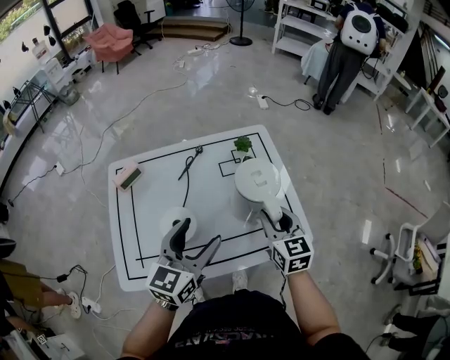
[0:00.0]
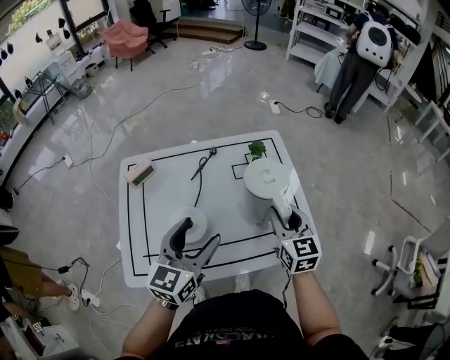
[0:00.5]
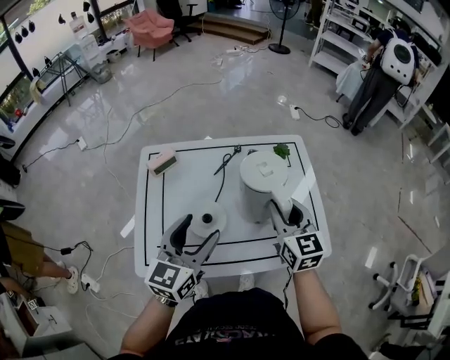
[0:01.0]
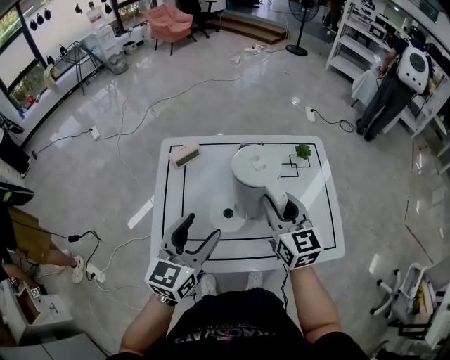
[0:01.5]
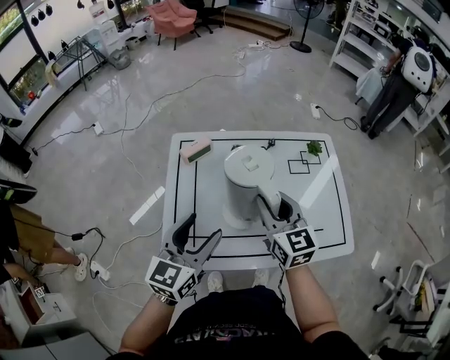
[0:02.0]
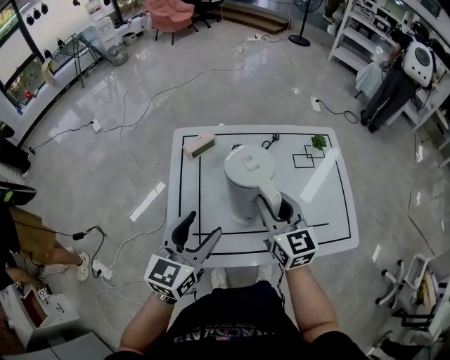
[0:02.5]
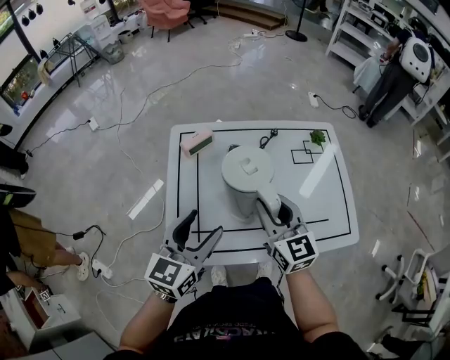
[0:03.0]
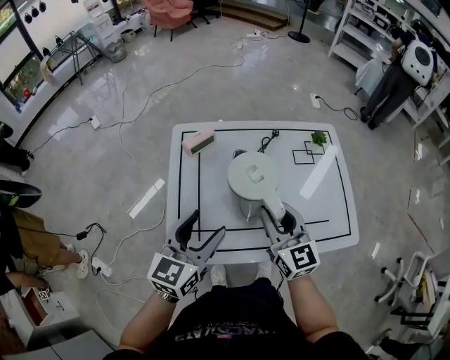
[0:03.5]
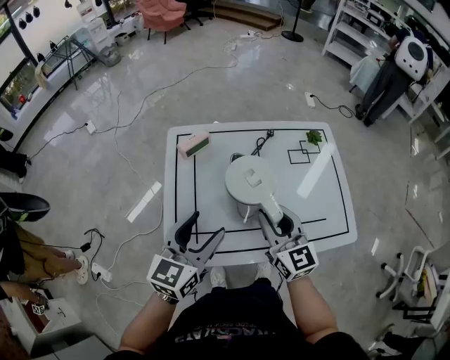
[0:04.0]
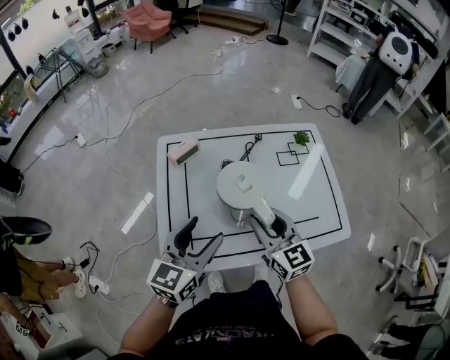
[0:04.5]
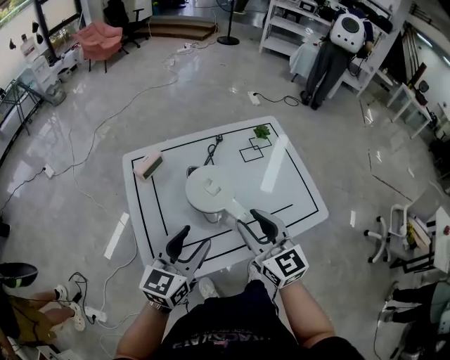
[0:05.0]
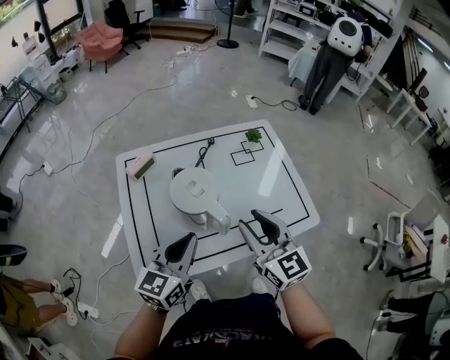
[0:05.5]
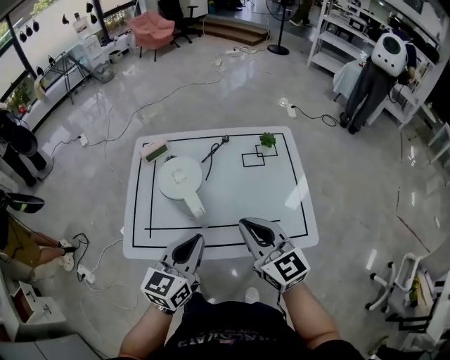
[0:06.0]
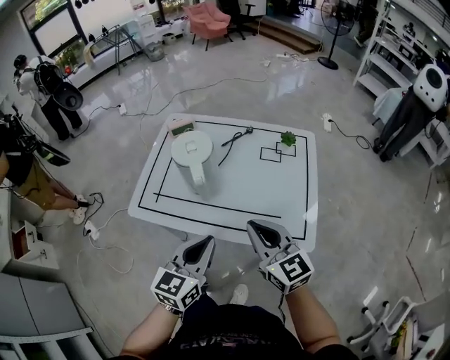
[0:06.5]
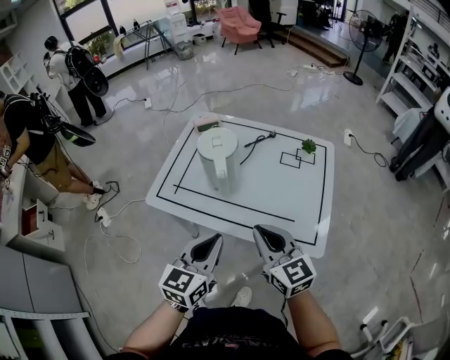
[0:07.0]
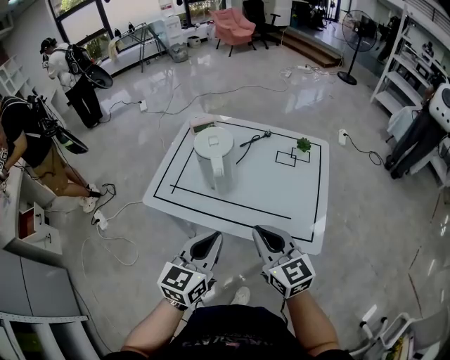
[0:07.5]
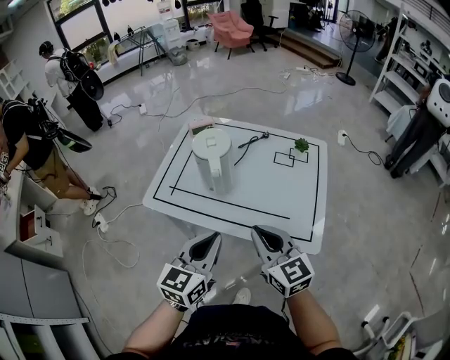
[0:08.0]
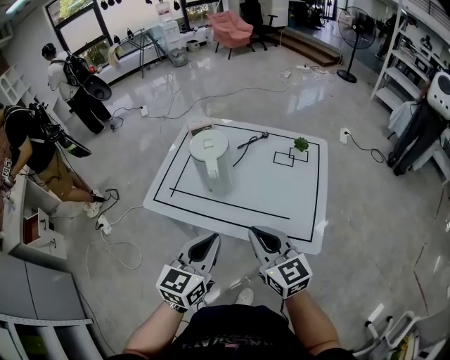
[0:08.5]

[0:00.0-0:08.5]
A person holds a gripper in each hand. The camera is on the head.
0:00.0 to 0:02.0: Both grippers move to the left, some 25 cm.
0:02.0 to 0:04.0: The right gripper shifts some 5 cm backward.
0:04.0 to 0:06.5: The left gripper shifts by roughly 30 cm, and closes up, while the right gripper changes place by approximately 25 cm, swivels some 20 degrees, and closes its fingers.
0:06.5 to 0:08.5: The grippers stay close to where they were, moving slightly.

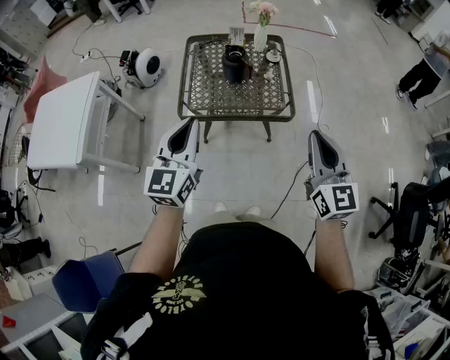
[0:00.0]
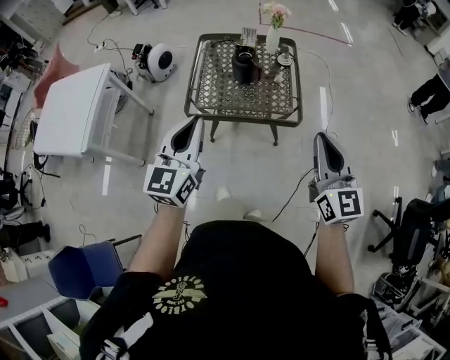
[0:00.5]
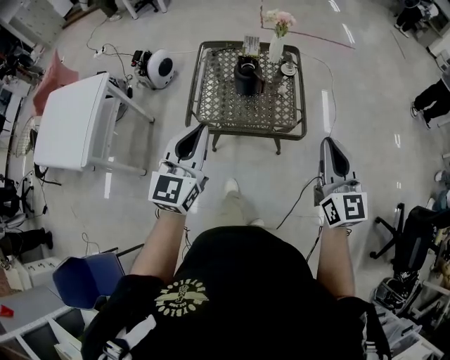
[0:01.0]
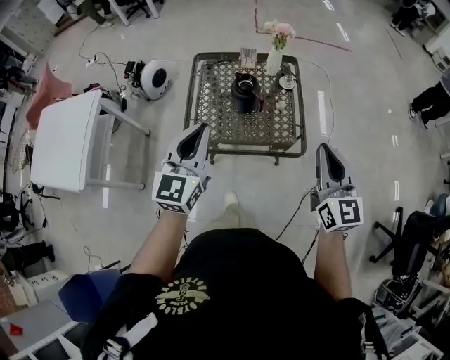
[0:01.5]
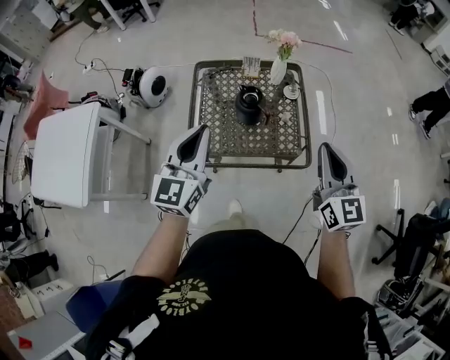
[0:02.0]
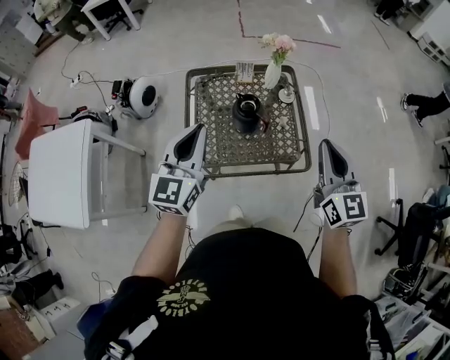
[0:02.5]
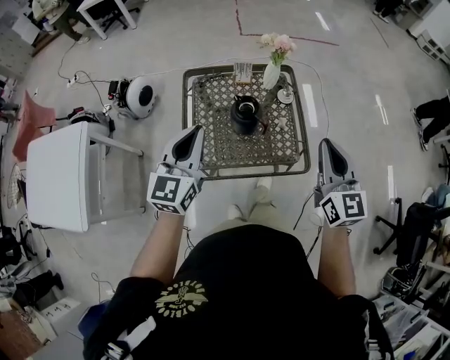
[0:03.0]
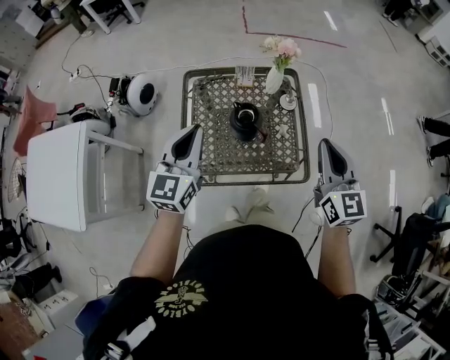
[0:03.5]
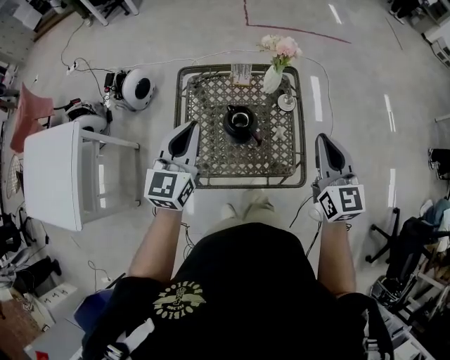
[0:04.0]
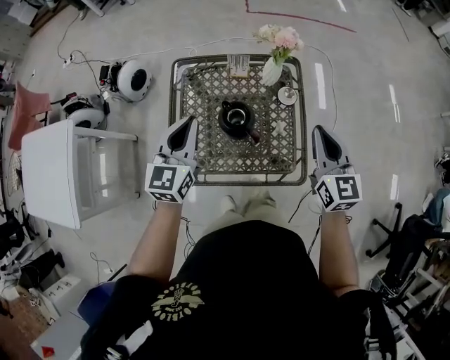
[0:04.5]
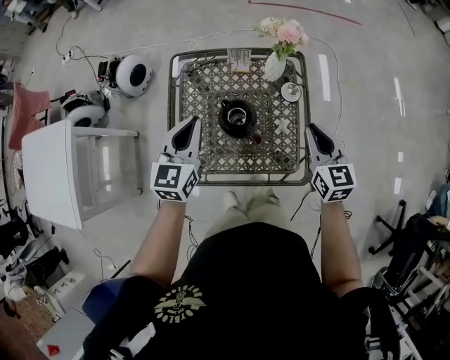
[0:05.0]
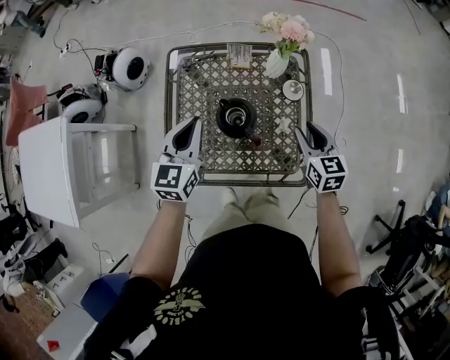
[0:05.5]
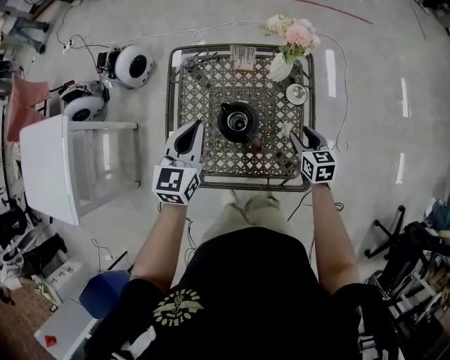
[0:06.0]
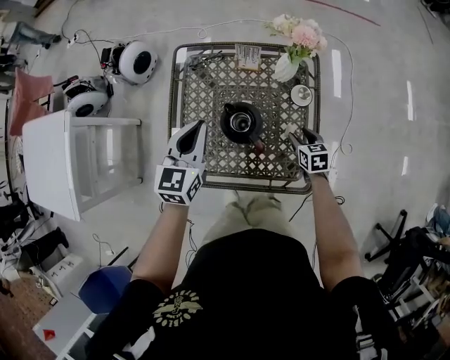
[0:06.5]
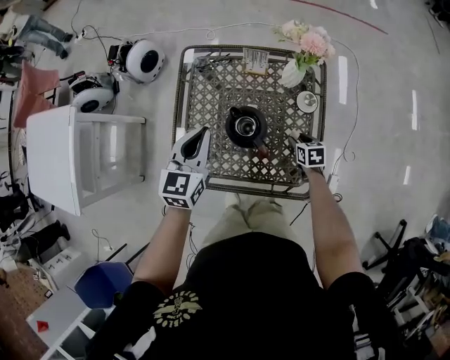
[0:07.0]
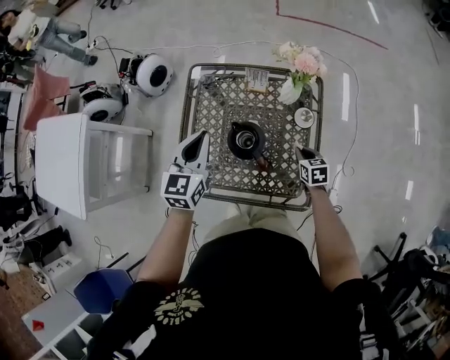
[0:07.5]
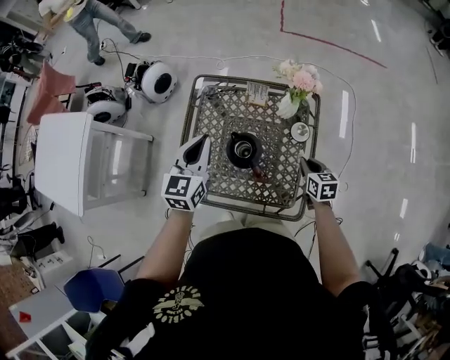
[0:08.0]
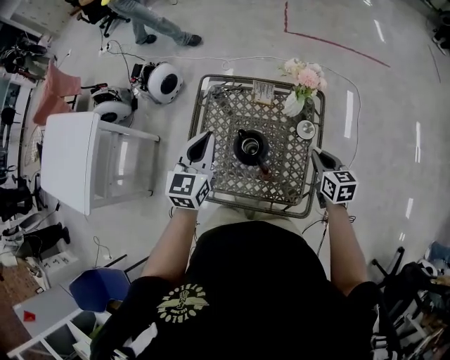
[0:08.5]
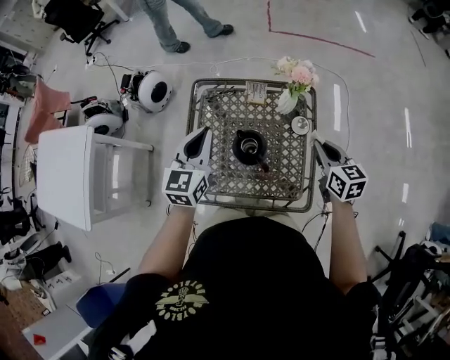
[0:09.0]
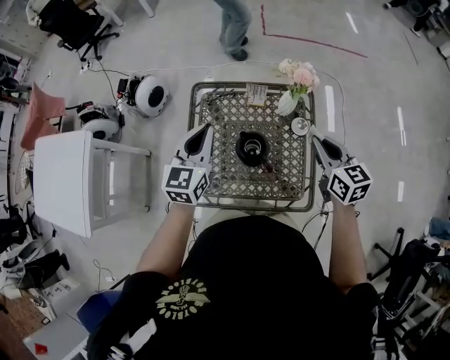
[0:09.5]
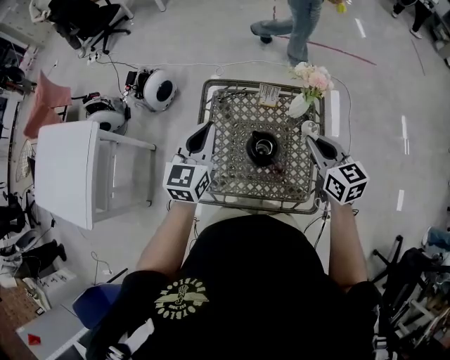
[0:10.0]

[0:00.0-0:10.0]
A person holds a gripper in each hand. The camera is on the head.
0:00.0 to 0:02.0: Both grippers move forward, some 25 cm.
0:02.0 to 0:04.0: Both grippers travel together forward, some 15 cm.
0:04.0 to 0:06.0: The right gripper heads downward, covering approximately 30 cm, tilts its fingers some 30 degrees downward, and opens its fingers. The left gripper shifts approximately 15 cm downward and forward.
0:06.0 to 0:08.0: The left gripper moves upward, about 5 cm; the right gripper goes downward and returns, roughly 15 cm each way, and closes its fingers.
0:08.0 to 0:10.0: The right gripper travels upward and to the left by some 25 cm, and rotates some 20 degrees, while the left gripper goes approximately 10 cm to the left and upward.

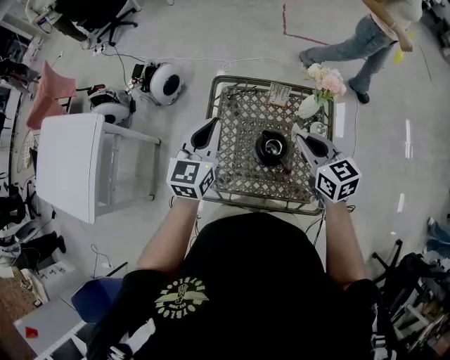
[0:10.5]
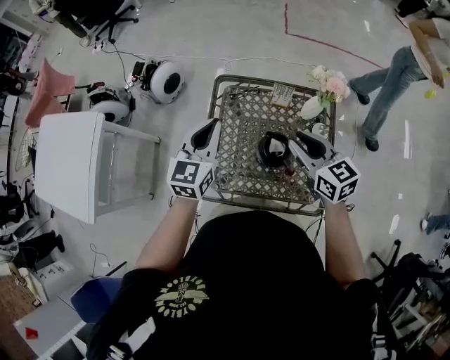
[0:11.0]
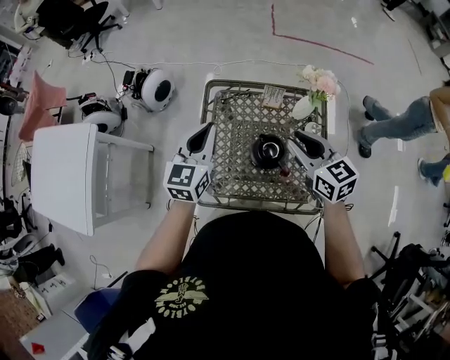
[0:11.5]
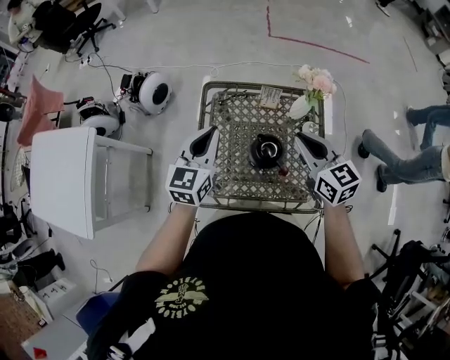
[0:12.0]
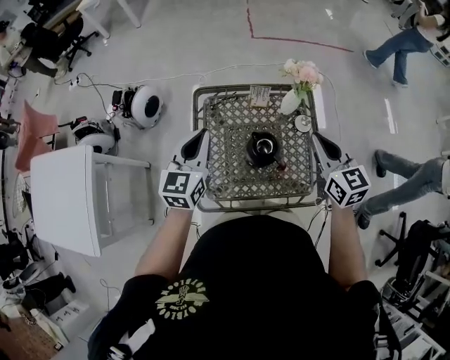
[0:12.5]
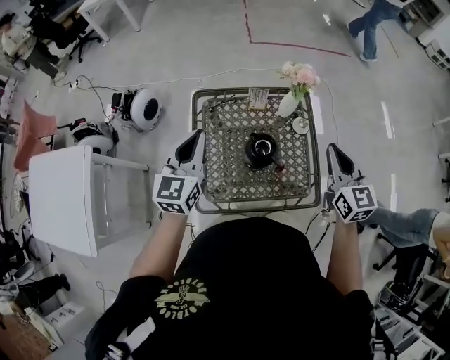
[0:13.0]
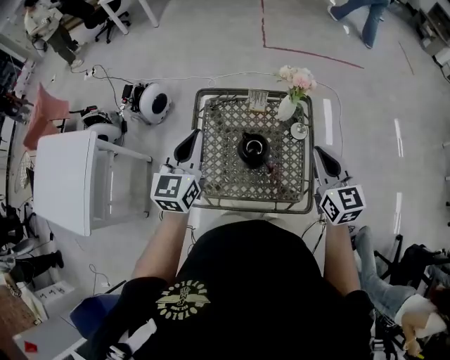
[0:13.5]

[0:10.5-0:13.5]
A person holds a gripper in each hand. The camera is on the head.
0:10.5 to 0:12.0: There are only small adjustments of the grippers.
0:12.0 to 0:13.5: The left gripper goes about 5 cm upward. Meanwhile the right gripper shifts about 15 cm to the right and backward.

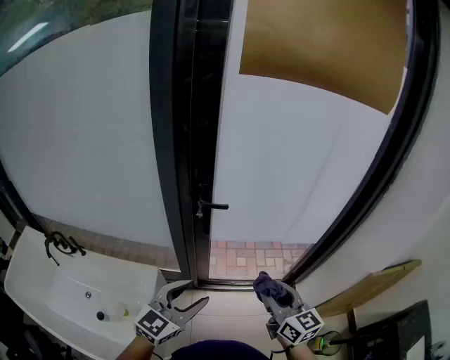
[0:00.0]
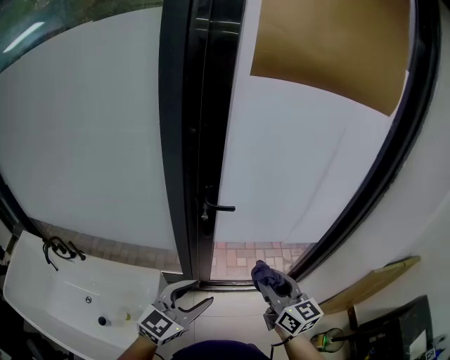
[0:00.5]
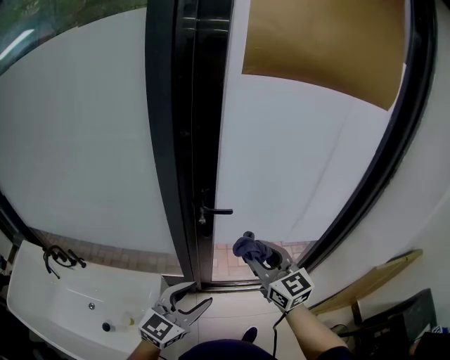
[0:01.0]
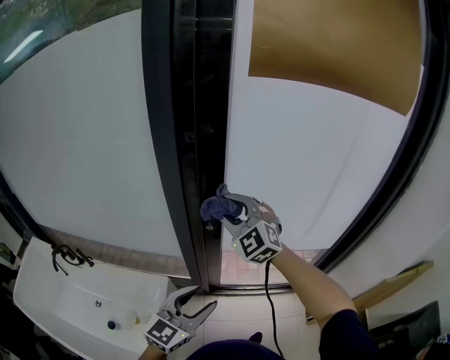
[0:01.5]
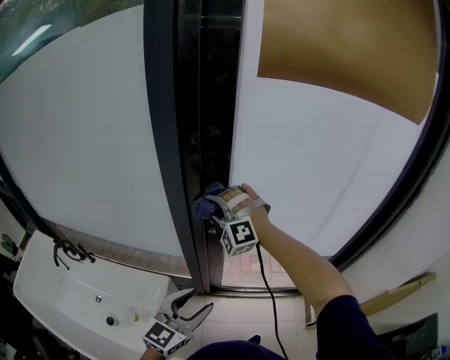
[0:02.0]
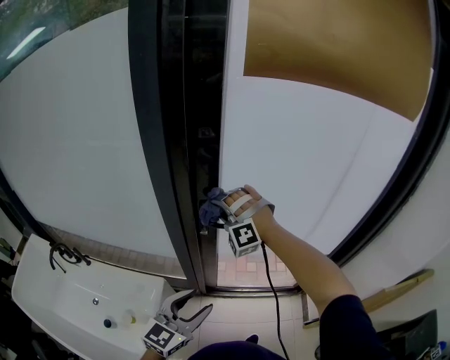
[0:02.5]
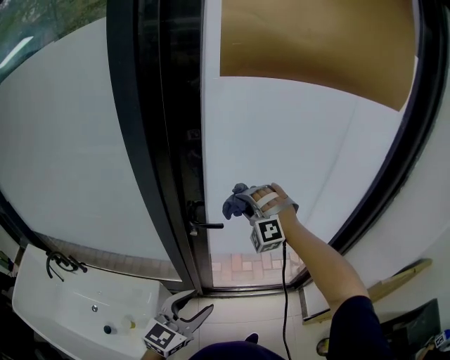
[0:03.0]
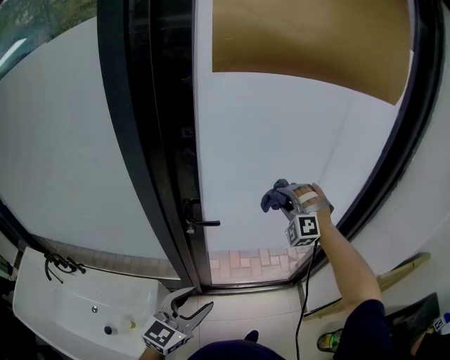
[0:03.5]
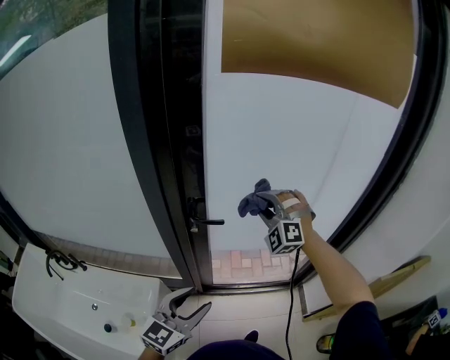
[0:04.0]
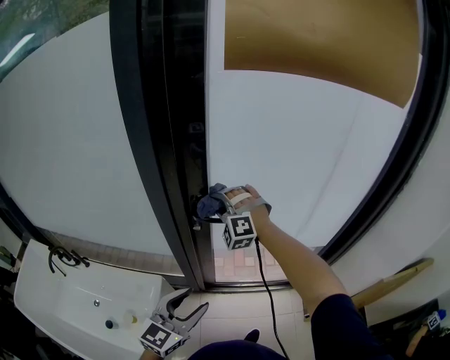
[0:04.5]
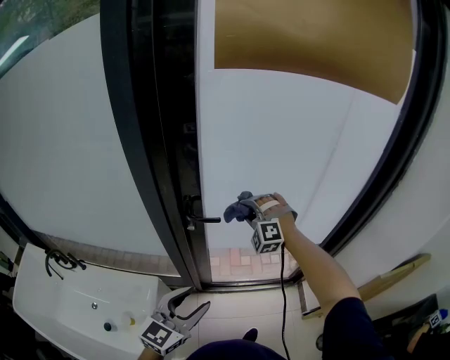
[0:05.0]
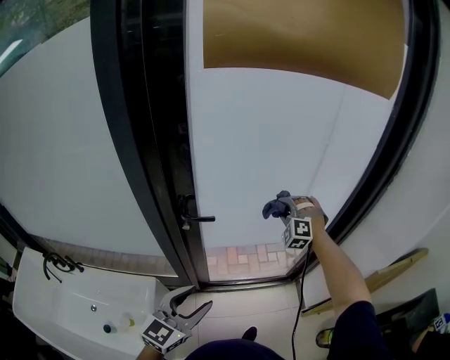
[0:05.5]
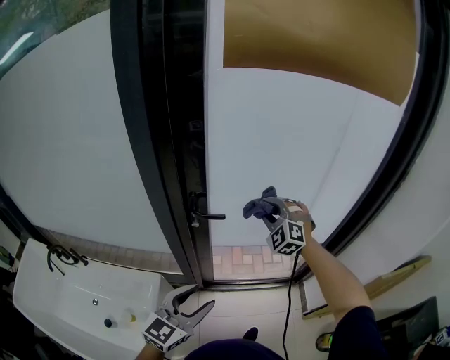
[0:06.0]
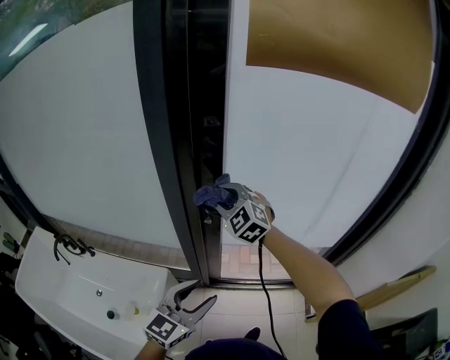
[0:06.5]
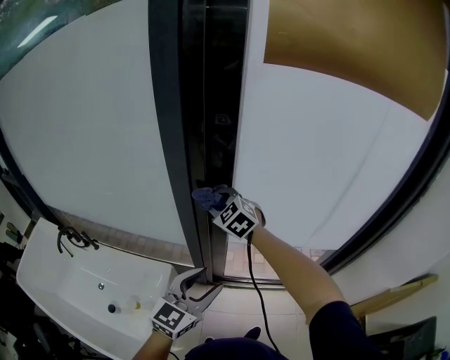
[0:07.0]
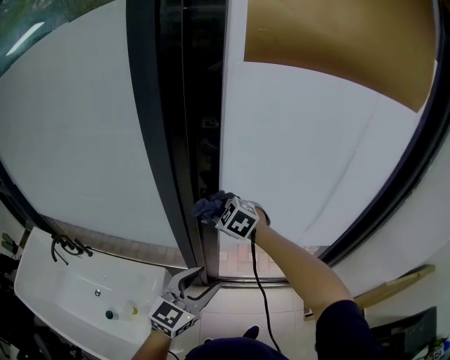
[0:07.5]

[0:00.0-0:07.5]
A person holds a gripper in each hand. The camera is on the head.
0:00.0 to 0:02.0: The left gripper shifts about 5 cm forward; the right gripper is displaced forward and to the left by about 40 cm, and rotates around the line of its fingers by approximately 100 degrees, counterclockwise from behind.
0:02.0 to 0:04.0: The right gripper shifts some 20 cm to the right, and turns by some 20 degrees.
0:04.0 to 0:05.5: The right gripper moves to the right, downward and forward, about 15 cm.
0:05.5 to 0:07.5: The right gripper heads to the left, covering some 30 cm, and rotates roughly 50 degrees.
